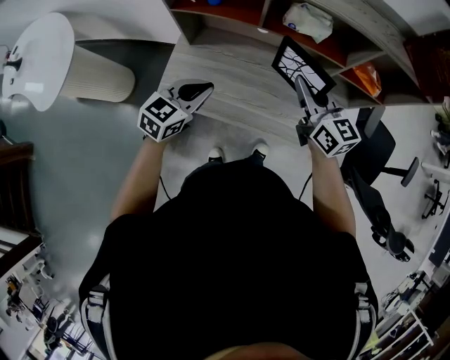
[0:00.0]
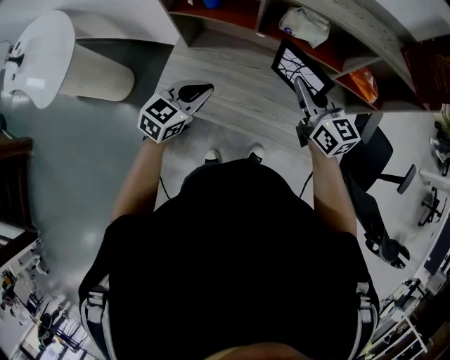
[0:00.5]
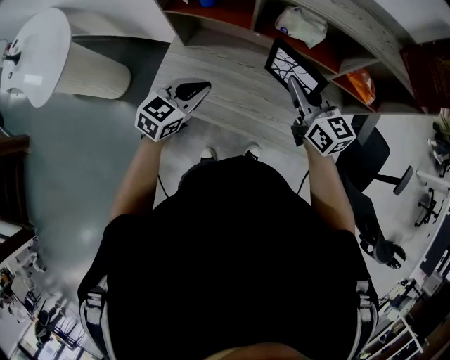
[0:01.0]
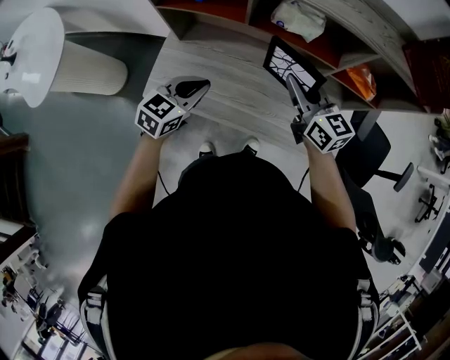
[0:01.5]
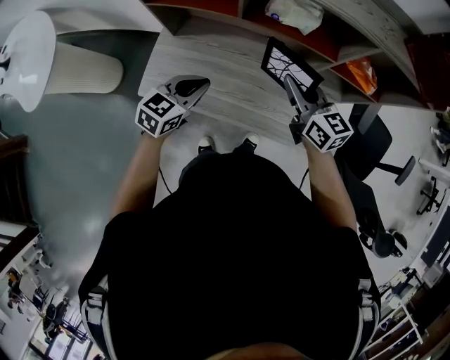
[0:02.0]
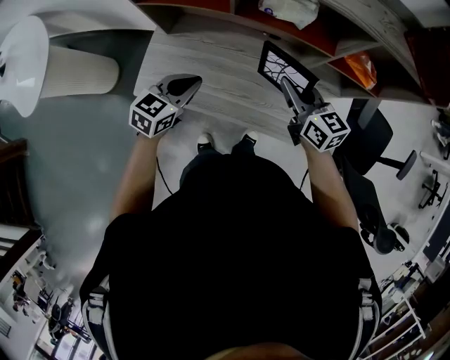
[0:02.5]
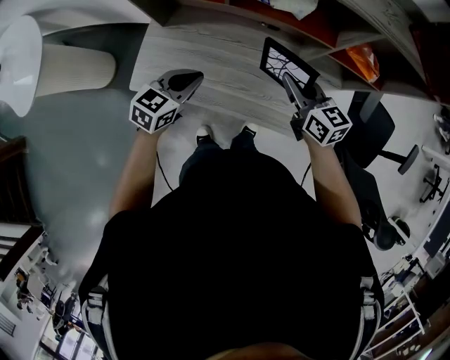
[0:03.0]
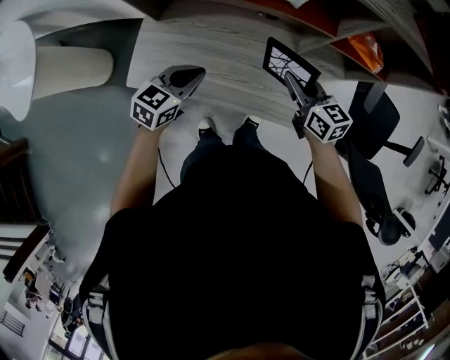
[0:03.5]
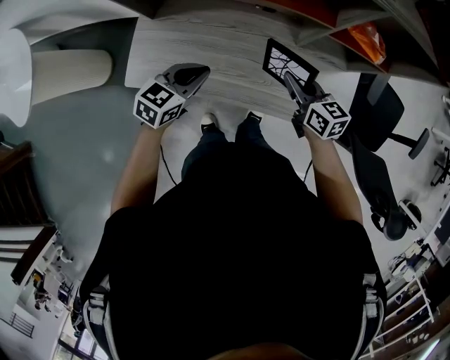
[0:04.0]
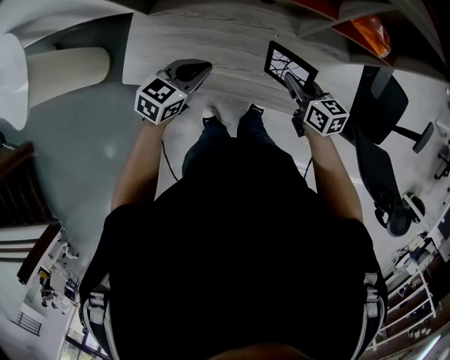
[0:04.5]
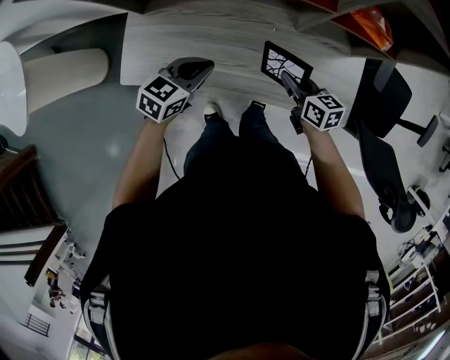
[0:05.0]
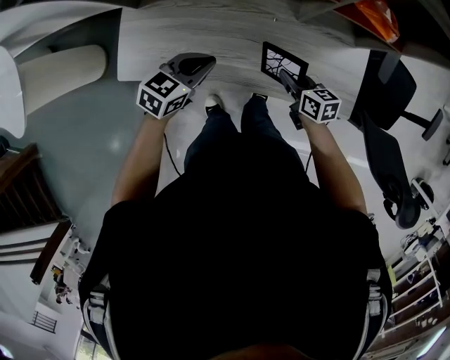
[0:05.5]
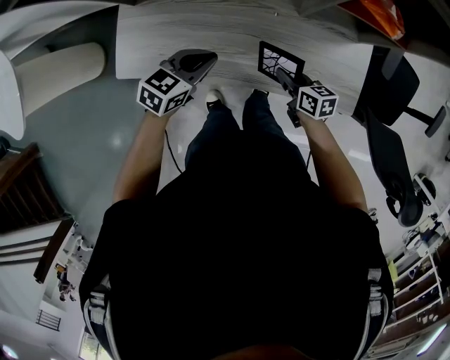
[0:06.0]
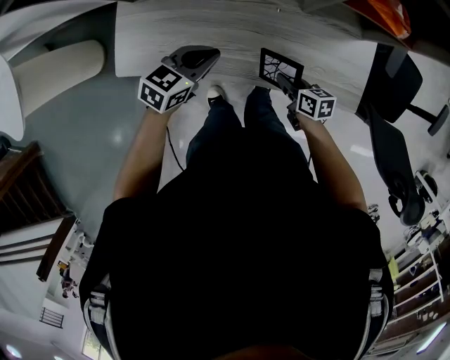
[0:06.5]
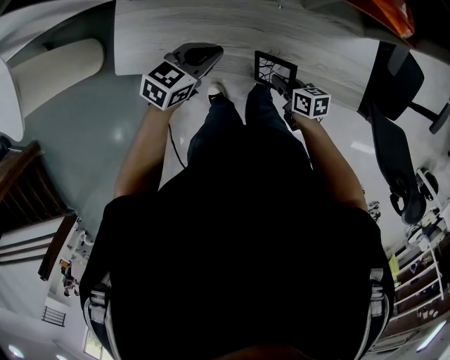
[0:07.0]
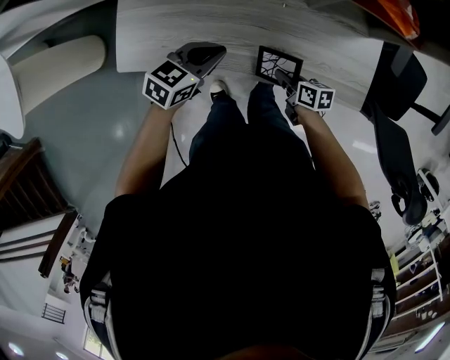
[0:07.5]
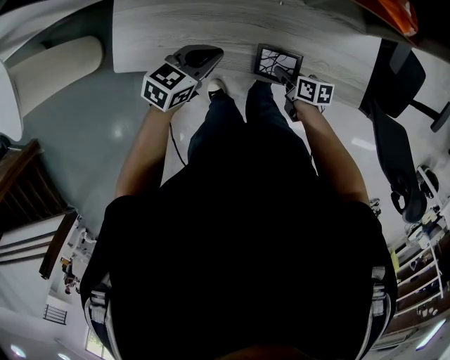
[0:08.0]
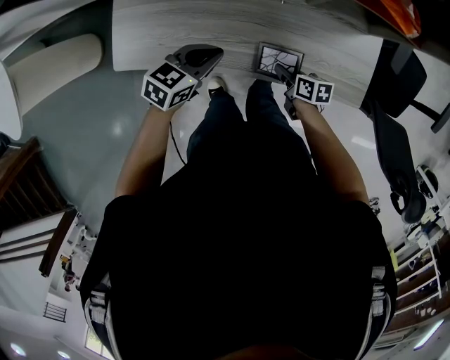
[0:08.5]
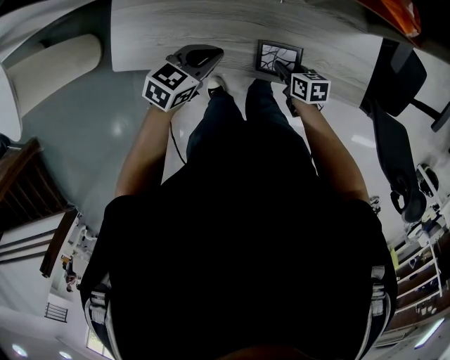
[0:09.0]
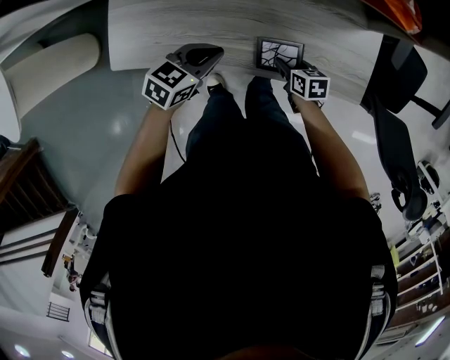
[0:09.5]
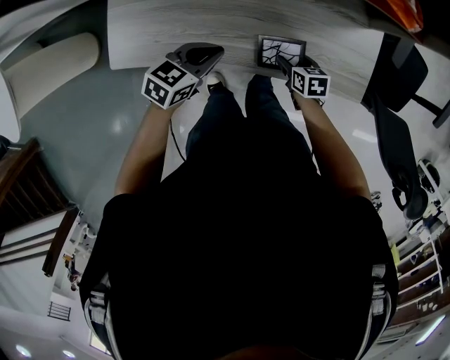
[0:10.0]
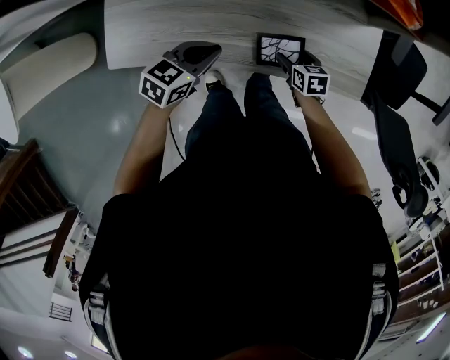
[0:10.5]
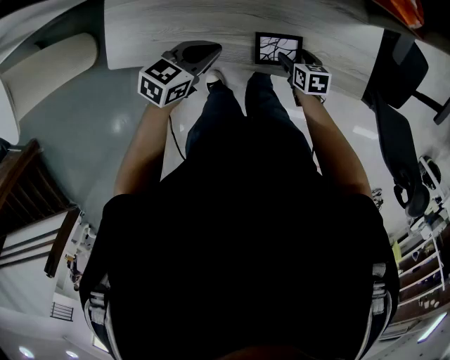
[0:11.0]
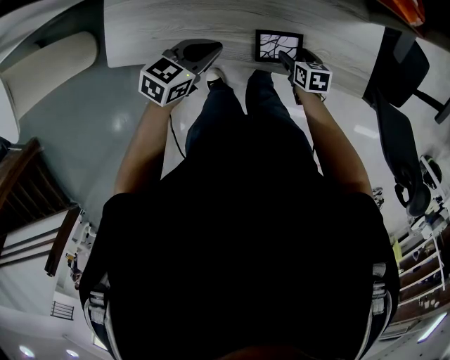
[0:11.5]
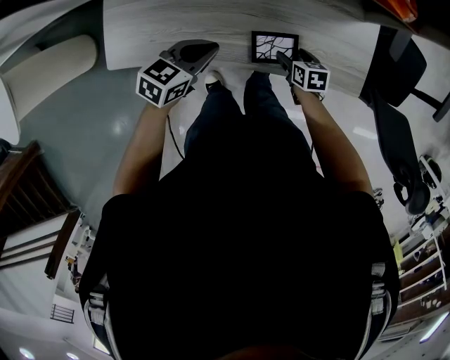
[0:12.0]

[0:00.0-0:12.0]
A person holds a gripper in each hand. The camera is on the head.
0:00.0 to 0:02.0: The right gripper heads downward, covering roughly 5 cm; the left gripper goes about 5 cm to the right.
0:02.0 to 0:04.0: The right gripper shifts some 15 cm downward and to the right; the left gripper shifts some 10 cm downward and to the right.
0:04.0 to 0:06.0: The left gripper travels downward by about 5 cm, while the right gripper shifts approximately 15 cm downward.
0:06.0 to 0:08.0: The right gripper heads downward, covering roughly 10 cm.
0:08.0 to 0:10.0: The right gripper rotates roughly 30 degrees, and opens its fingers.
0:10.0 to 0:12.0: The grippers stay close to where they were, moving slightly.

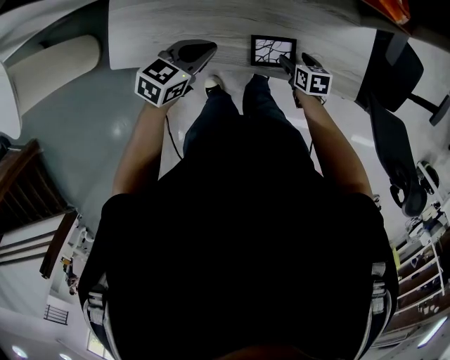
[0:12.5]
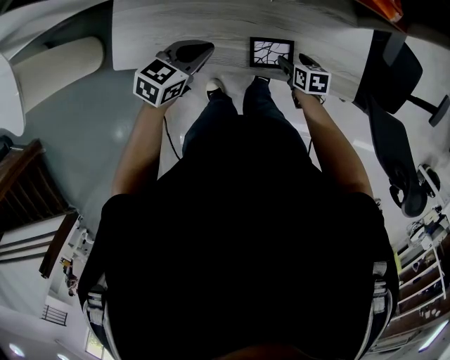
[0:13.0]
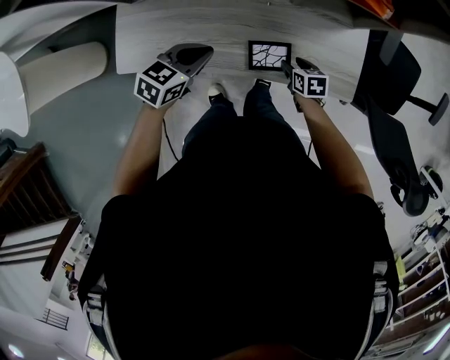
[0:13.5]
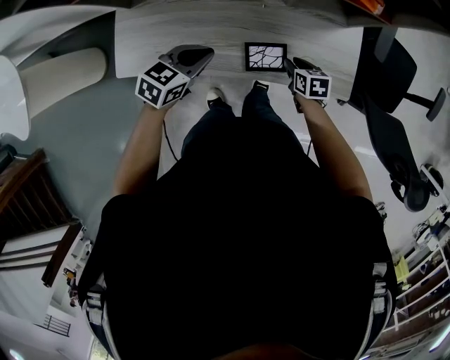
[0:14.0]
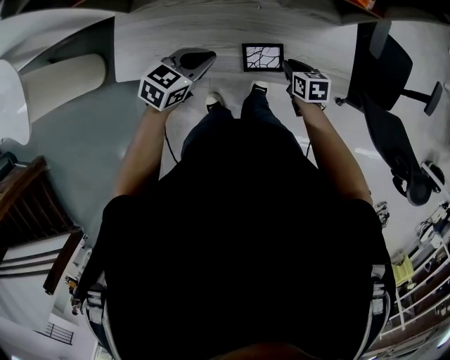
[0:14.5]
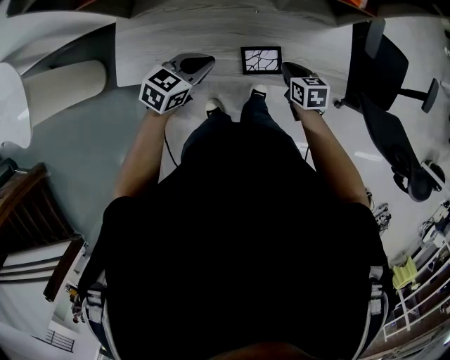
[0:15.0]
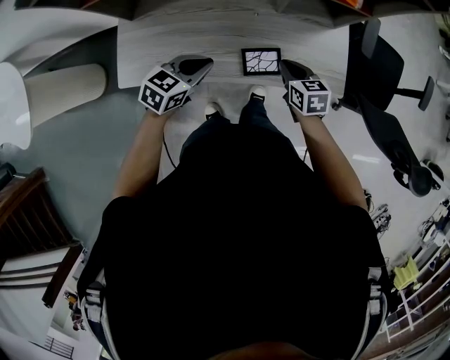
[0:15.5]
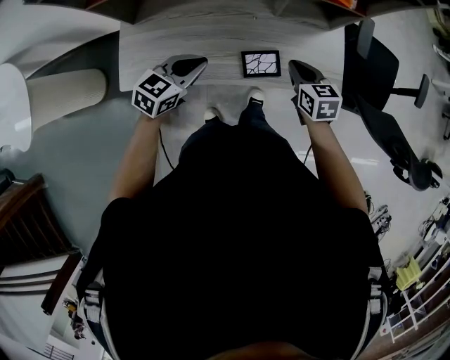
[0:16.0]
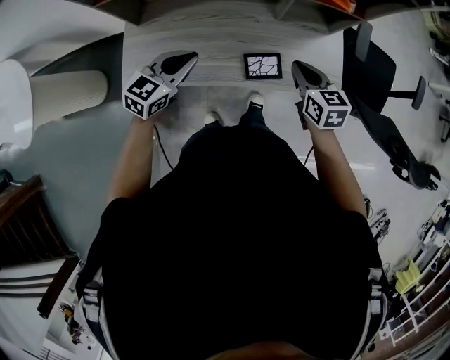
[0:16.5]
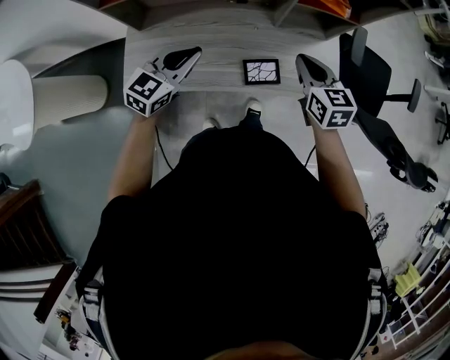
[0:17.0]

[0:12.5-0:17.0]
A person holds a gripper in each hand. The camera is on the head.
0:12.5 to 0:14.5: The right gripper heads upward, covering roughly 10 cm, and closes up. Meanwhile the left gripper moves approximately 5 cm.
0:14.5 to 0:17.0: The left gripper is displaced upward and to the left by some 15 cm, and swivels some 20 degrees, while the right gripper goes about 25 cm upward, and rotates about 30 degrees.

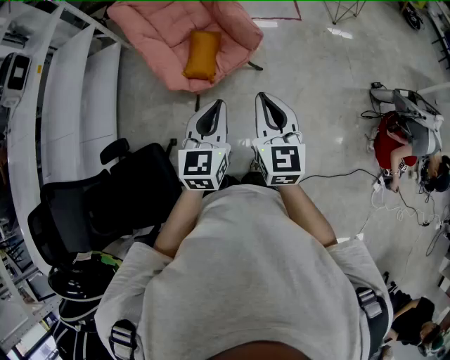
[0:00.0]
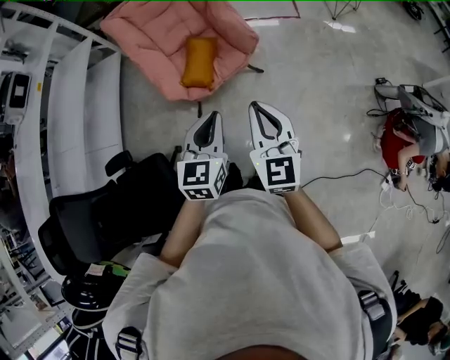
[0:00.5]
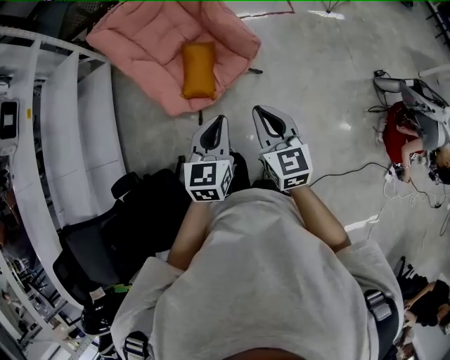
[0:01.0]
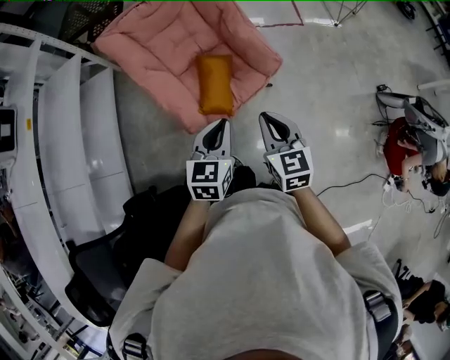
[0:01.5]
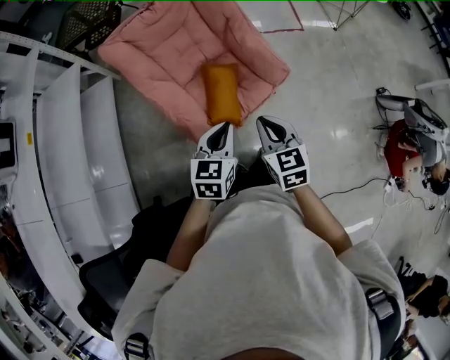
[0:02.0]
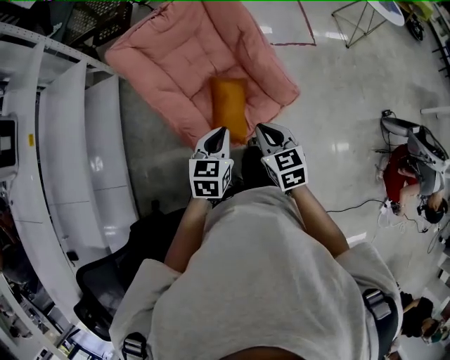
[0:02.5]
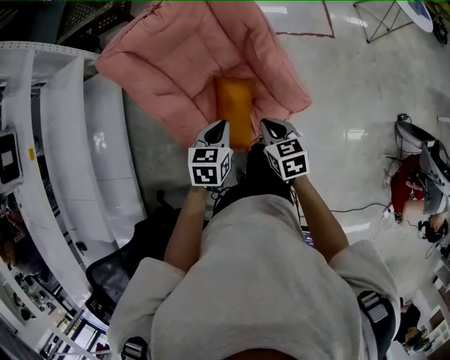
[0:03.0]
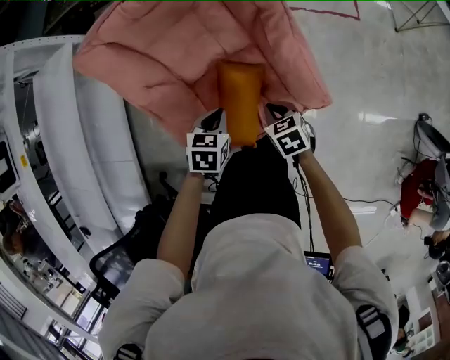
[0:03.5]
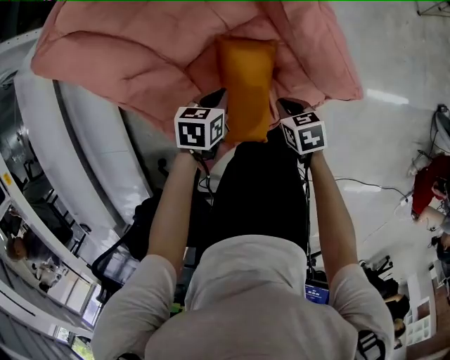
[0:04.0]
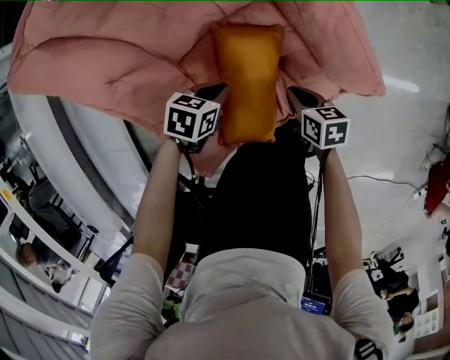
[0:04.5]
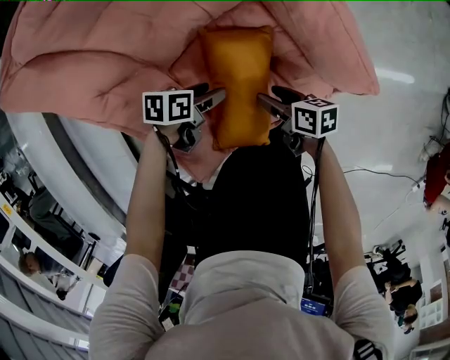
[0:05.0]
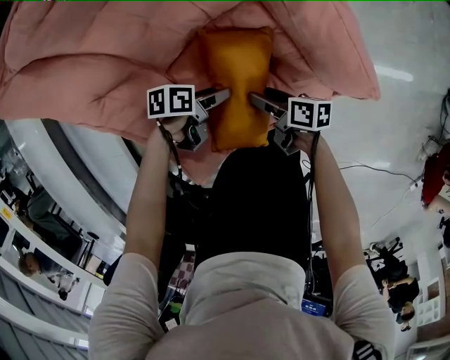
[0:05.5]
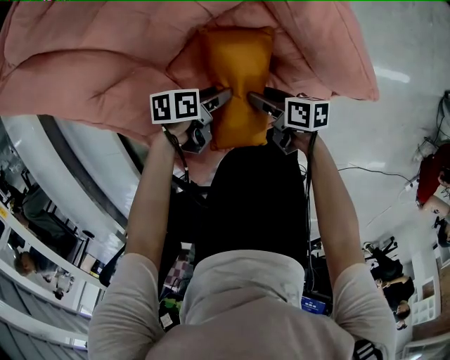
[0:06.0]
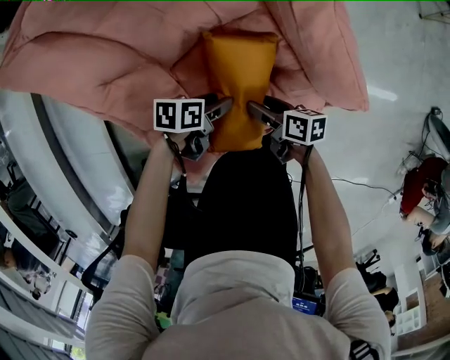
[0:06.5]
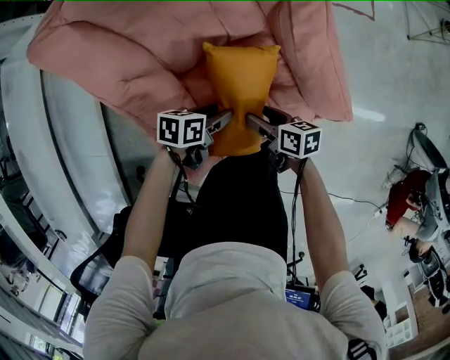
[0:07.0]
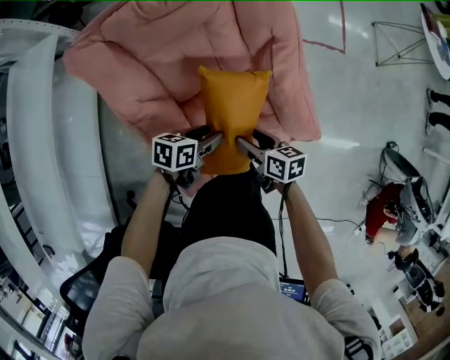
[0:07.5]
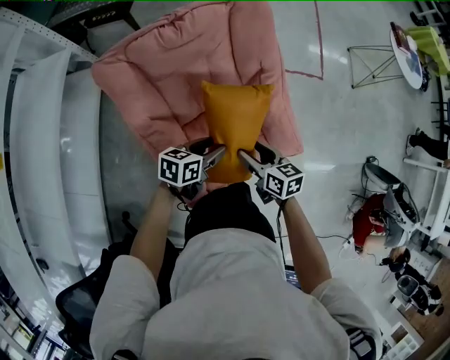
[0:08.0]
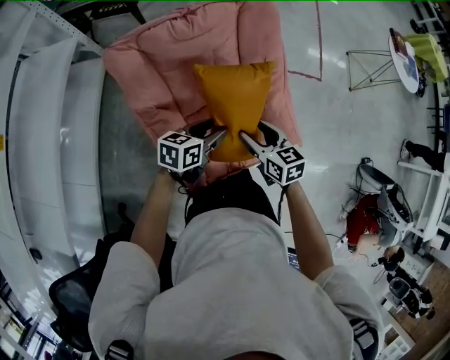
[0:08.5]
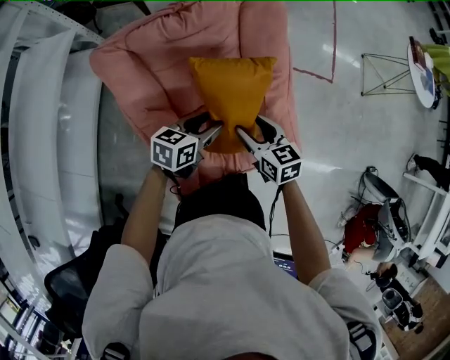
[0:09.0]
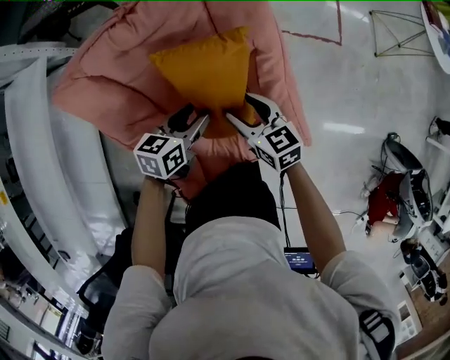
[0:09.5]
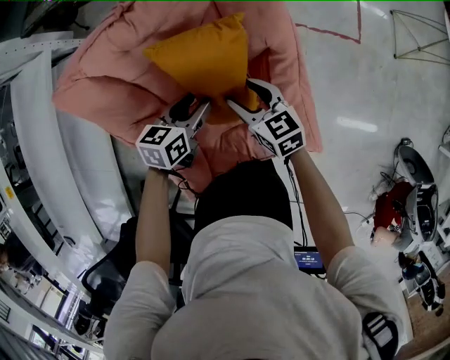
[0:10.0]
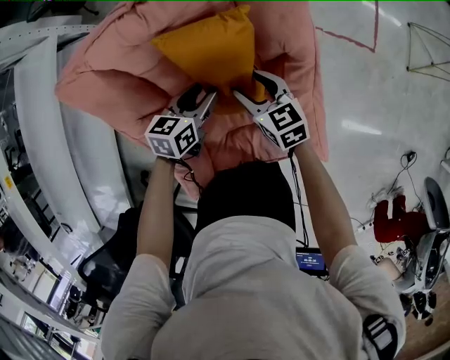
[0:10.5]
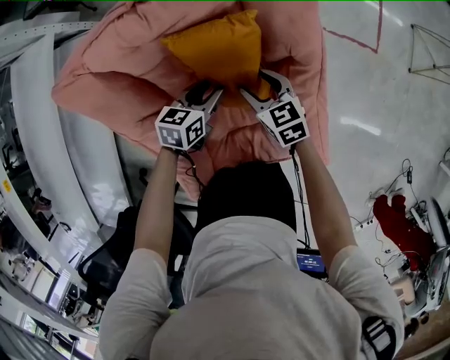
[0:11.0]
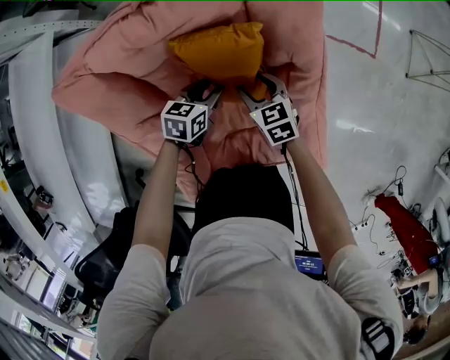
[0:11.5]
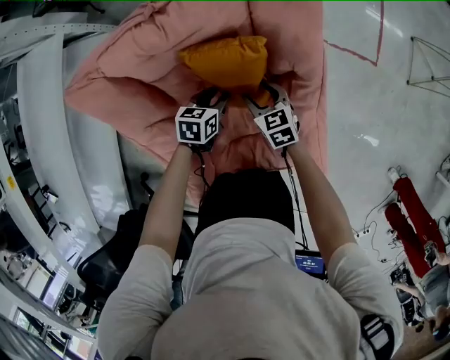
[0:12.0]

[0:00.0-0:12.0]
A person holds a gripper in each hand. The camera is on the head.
0:00.0 to 0:02.0: The grippers both shift forward, to the left and downward by about 30 cm. The right gripper changes its angle by roughly 20 degrees.
0:02.0 to 0:04.0: The two grippers go roughly 40 cm downward and forward. The left gripper tilts its fingers some 30 degrees downward. The right gripper rotates about 40 degrees.
0:04.0 to 0:06.0: Both grippers move downward, approximately 10 cm. The right gripper swivels roughly 40 degrees, and opens up. Meanwhile the left gripper changes its angle by about 30 degrees, and opens.
0:06.0 to 0:08.0: The two grippers go approximately 30 cm upward. The right gripper rotates approximately 40 degrees. The left gripper rotates approximately 40 degrees.
0:08.0 to 0:10.0: The two grippers go roughly 20 cm forward. The right gripper turns by approximately 20 degrees.
0:10.0 to 0:12.0: Both grippers move downward, approximately 10 cm.
